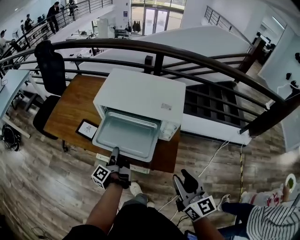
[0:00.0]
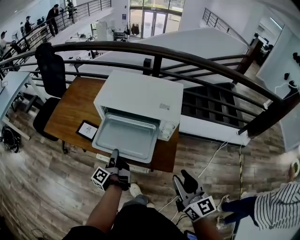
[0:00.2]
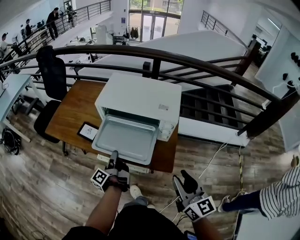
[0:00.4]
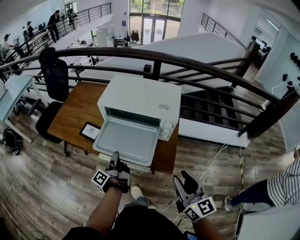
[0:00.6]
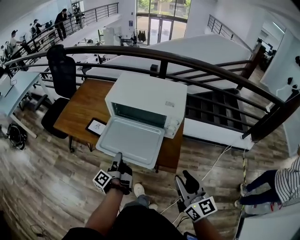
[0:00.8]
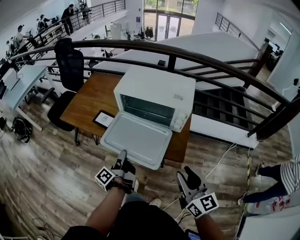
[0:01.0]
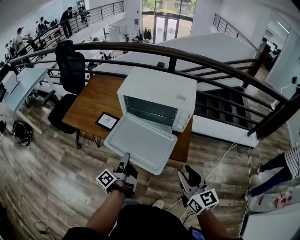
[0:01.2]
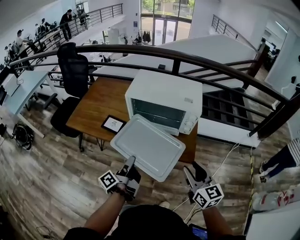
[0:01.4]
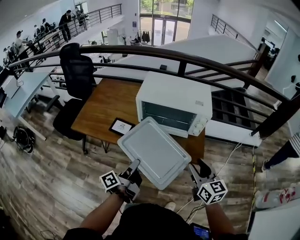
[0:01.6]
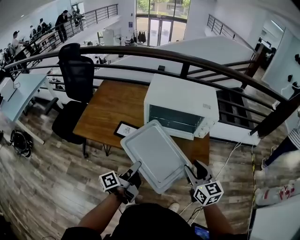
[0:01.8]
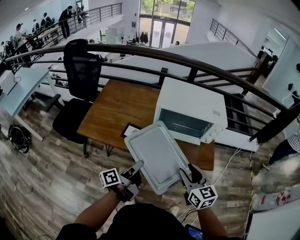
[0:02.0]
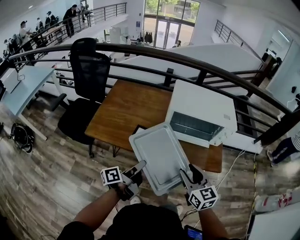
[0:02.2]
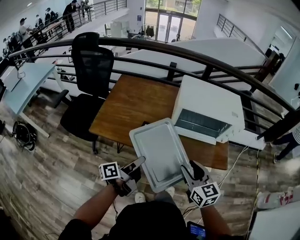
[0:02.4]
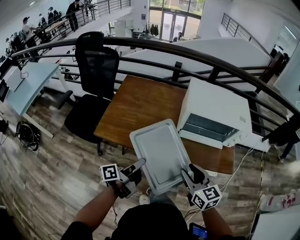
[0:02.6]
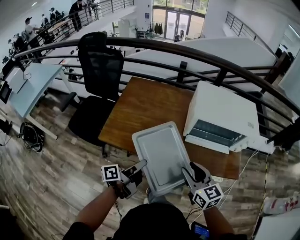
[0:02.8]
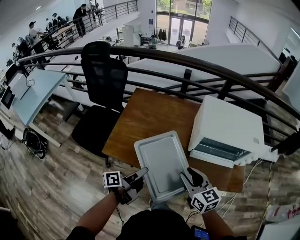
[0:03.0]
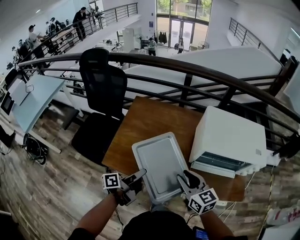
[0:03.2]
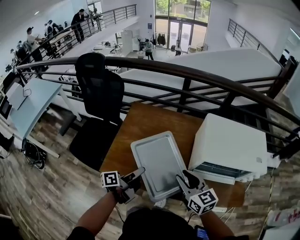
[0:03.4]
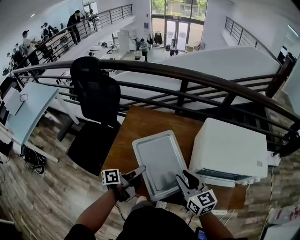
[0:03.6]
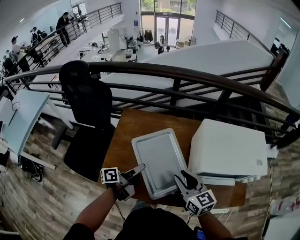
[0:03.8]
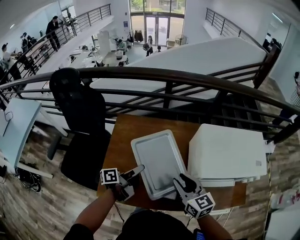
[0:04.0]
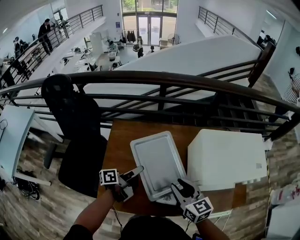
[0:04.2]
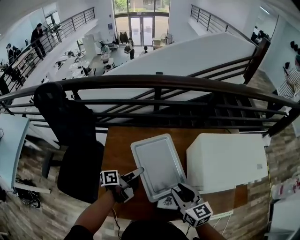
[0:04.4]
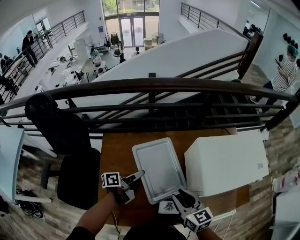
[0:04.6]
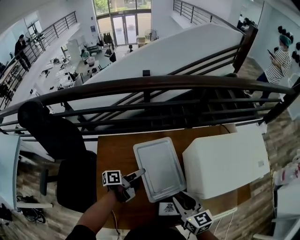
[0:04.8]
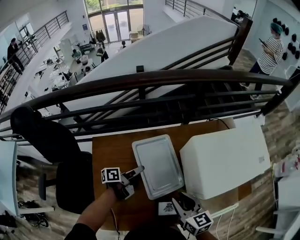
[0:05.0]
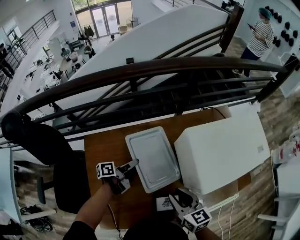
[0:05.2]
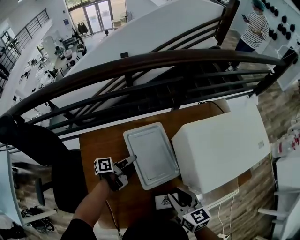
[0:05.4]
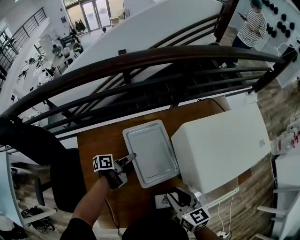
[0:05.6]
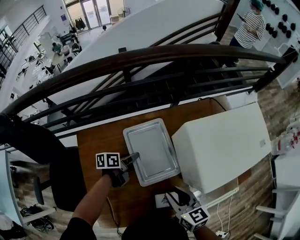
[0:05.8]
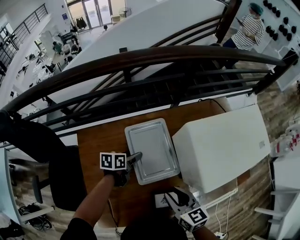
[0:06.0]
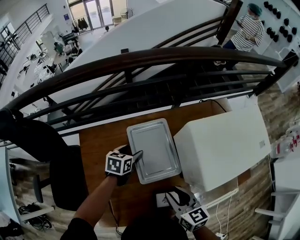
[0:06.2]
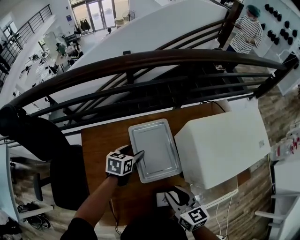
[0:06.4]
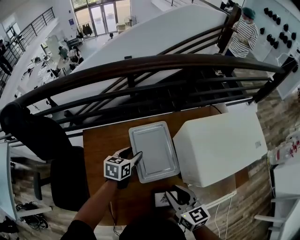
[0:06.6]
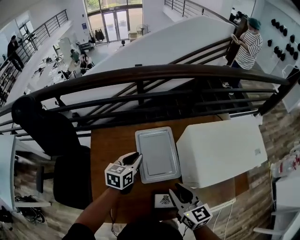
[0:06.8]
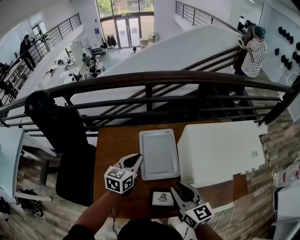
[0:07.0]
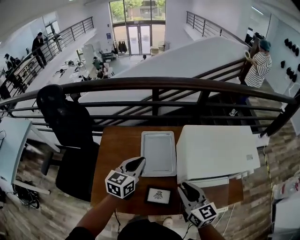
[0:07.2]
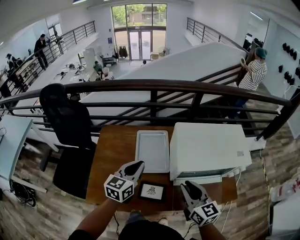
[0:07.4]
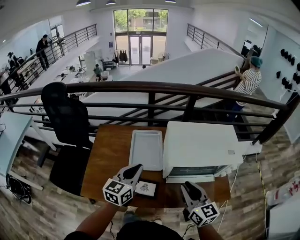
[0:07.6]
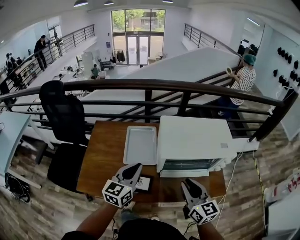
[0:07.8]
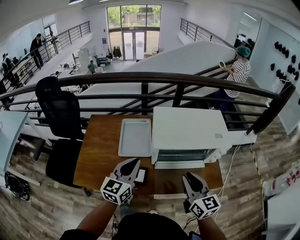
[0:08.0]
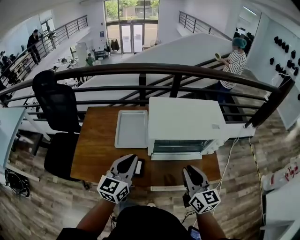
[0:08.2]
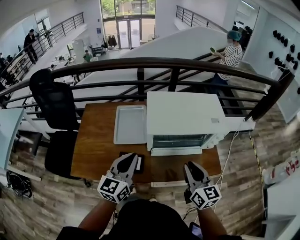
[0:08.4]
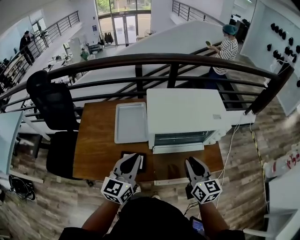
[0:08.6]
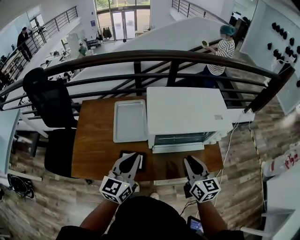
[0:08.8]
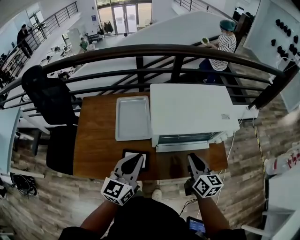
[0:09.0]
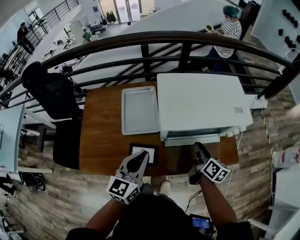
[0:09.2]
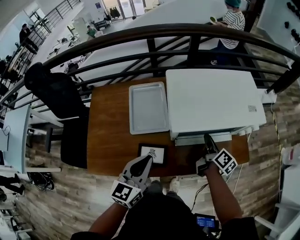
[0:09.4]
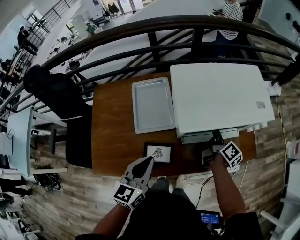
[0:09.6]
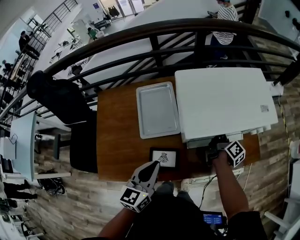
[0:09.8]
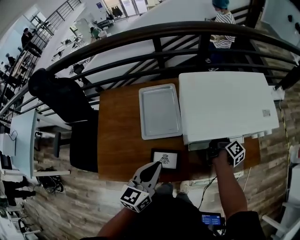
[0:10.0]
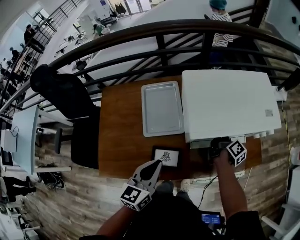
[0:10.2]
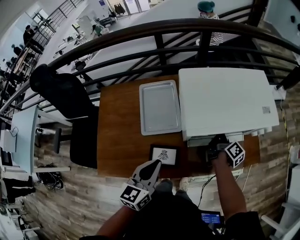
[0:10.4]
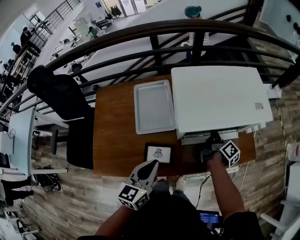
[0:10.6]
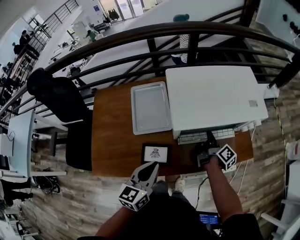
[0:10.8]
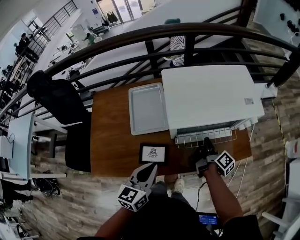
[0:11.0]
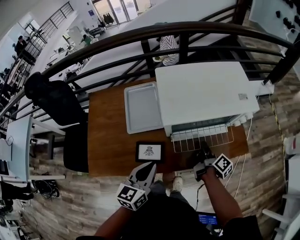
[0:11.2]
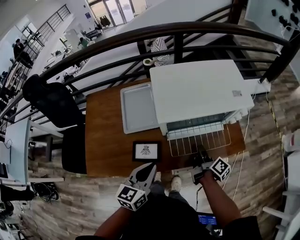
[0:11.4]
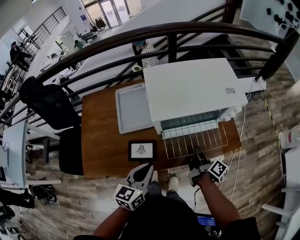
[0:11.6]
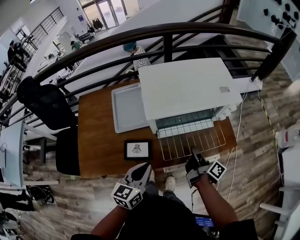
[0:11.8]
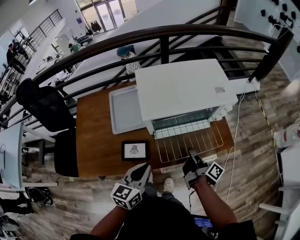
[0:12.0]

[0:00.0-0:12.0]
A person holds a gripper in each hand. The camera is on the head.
0:00.0 to 0:01.6: The left gripper is displaced backward, to the left and upward by roughly 15 cm, and changes its angle by roughly 30 degrees. The right gripper goes some 10 cm to the left.
0:01.6 to 0:03.0: The right gripper goes roughly 35 cm to the left. Meanwhile the left gripper travels to the left and forward by about 30 cm.
0:03.0 to 0:04.4: The left gripper heads forward, covering approximately 35 cm. The right gripper travels forward by approximately 20 cm.
0:04.4 to 0:06.0: The left gripper is displaced downward and forward by approximately 15 cm, angles its fingers downward, by about 40 degrees, and opens its fingers; the right gripper shifts some 5 cm downward.
0:06.0 to 0:07.6: The left gripper moves upward, backward and to the right, roughly 35 cm, rotates about 50 degrees, and closes up; the right gripper travels to the right, upward and backward by approximately 25 cm, and swivels some 20 degrees.
0:07.6 to 0:09.0: The left gripper goes roughly 10 cm to the right and backward, while the right gripper shifts some 10 cm to the right and downward, and swivels approximately 20 degrees.
0:09.0 to 0:10.4: The right gripper travels forward and downward by about 20 cm, twists some 50 degrees clockwise, seen from behind, and opens and closes again, while the left gripper shifts some 10 cm downward.
0:10.4 to 0:12.0: The right gripper is displaced backward by roughly 15 cm. Meanwhile the left gripper moves to the right and backward, approximately 10 cm.

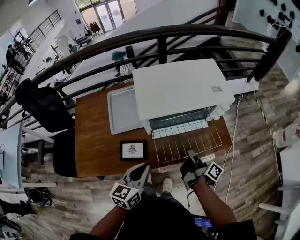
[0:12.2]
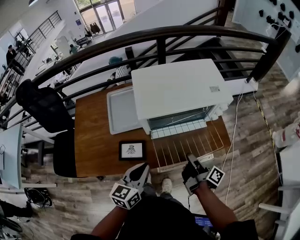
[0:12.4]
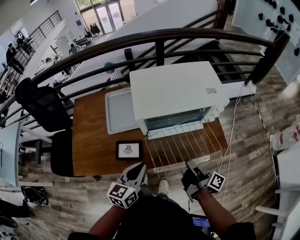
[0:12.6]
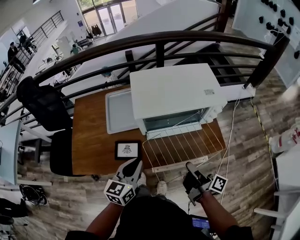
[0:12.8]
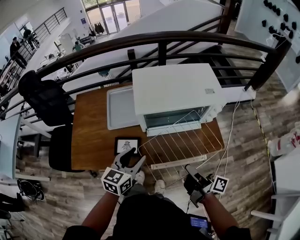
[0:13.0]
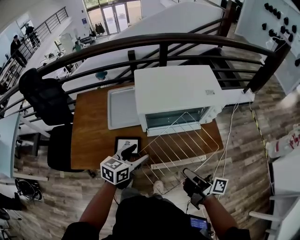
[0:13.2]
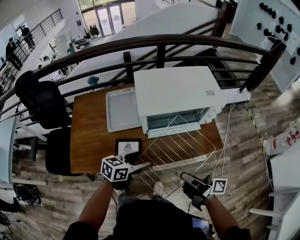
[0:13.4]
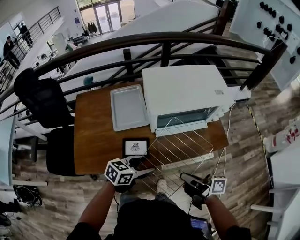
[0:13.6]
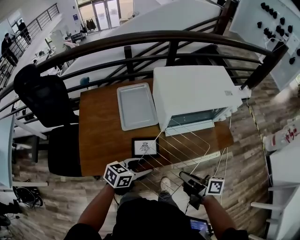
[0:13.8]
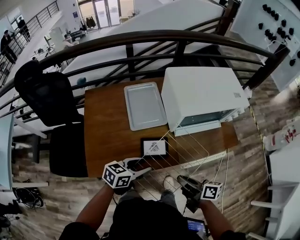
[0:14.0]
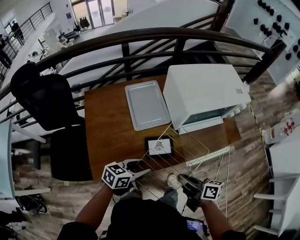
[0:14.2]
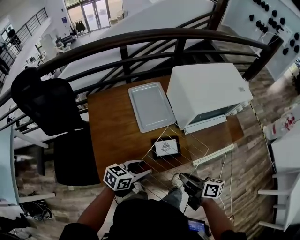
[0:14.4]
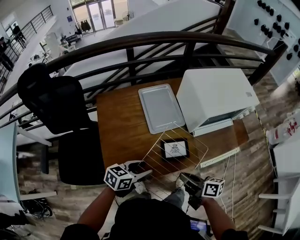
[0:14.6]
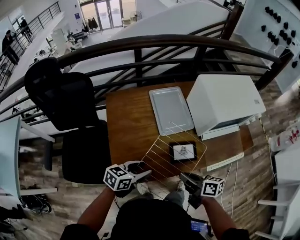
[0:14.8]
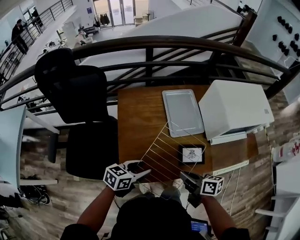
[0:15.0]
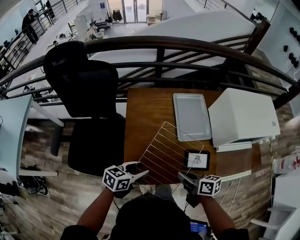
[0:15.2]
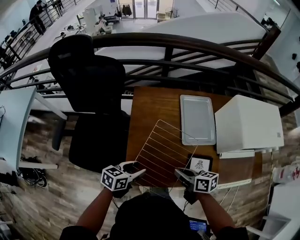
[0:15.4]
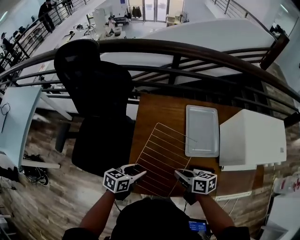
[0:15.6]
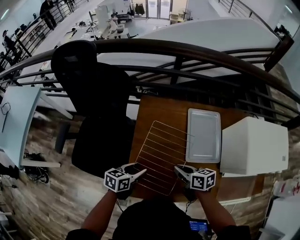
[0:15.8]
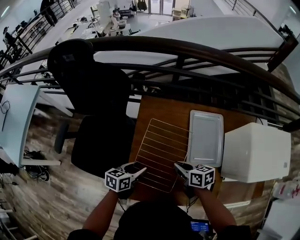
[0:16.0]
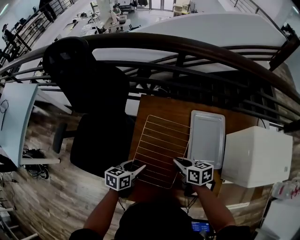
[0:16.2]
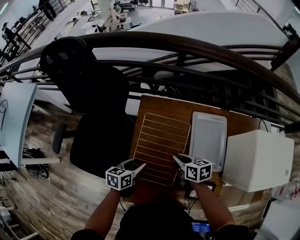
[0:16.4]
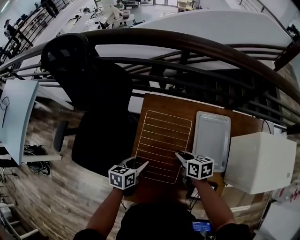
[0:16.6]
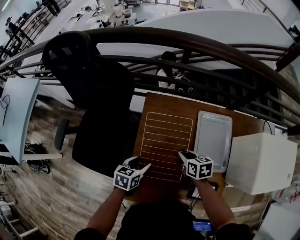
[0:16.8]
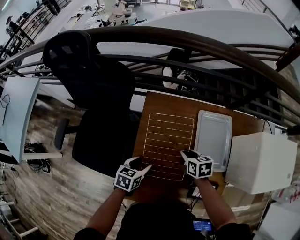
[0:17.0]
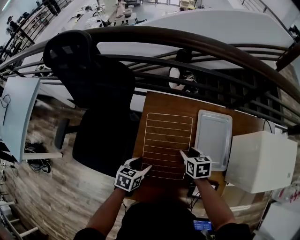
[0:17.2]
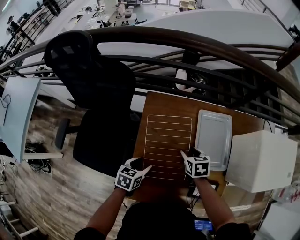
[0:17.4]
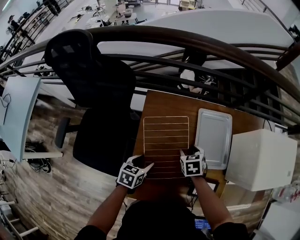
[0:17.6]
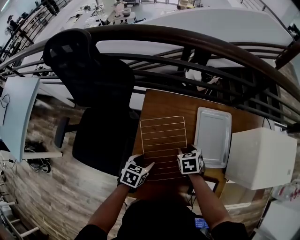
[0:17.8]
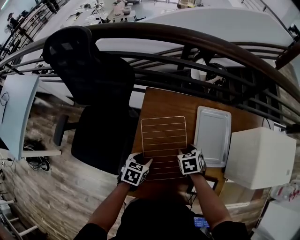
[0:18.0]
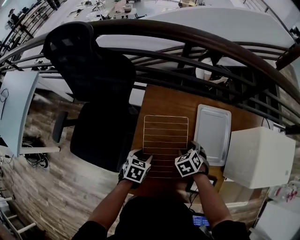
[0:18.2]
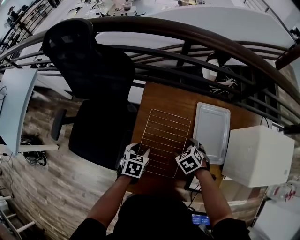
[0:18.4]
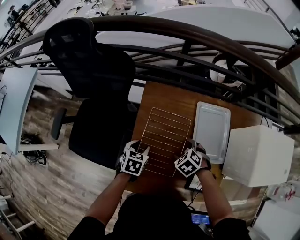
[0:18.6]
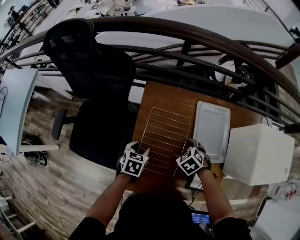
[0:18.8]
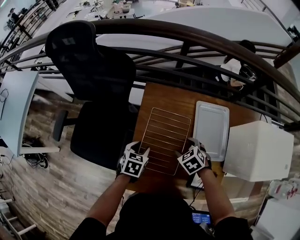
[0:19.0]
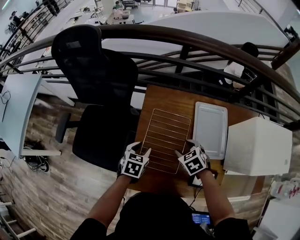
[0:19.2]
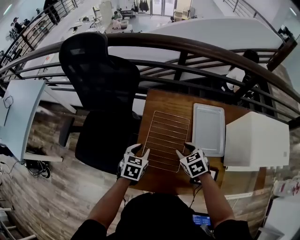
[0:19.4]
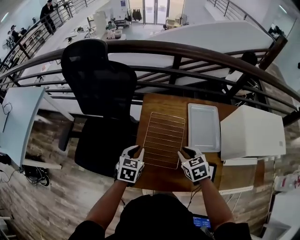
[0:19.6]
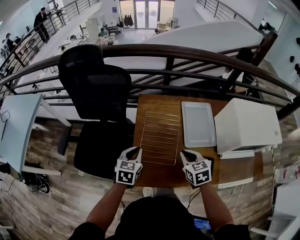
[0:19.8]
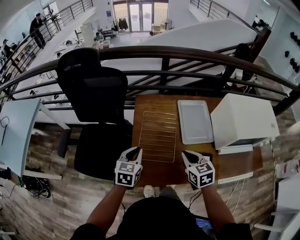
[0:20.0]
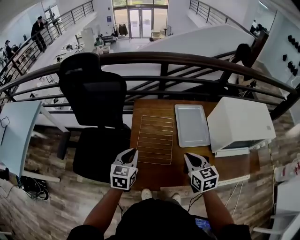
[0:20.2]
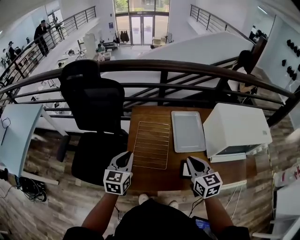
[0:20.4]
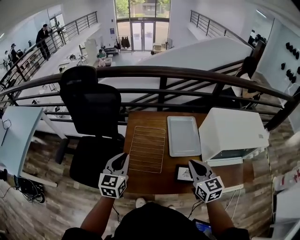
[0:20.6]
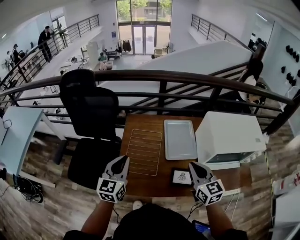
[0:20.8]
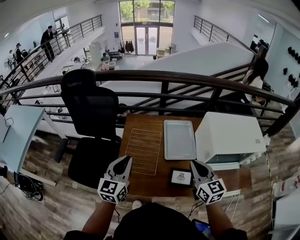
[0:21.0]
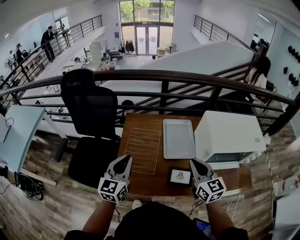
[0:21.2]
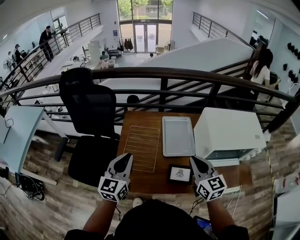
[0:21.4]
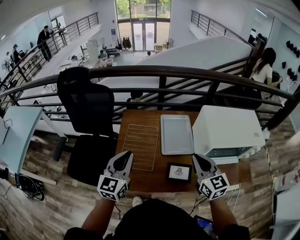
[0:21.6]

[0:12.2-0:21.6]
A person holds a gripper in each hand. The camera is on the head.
0:12.2 to 0:13.8: The right gripper is displaced to the left and backward by roughly 20 cm, and turns by roughly 40 degrees; the left gripper heads to the left, covering roughly 10 cm, changes its angle by approximately 30 degrees, and opens its fingers.
0:13.8 to 0:15.4: Both grippers move to the left, roughly 30 cm. The right gripper rotates approximately 30 degrees, while the left gripper changes its angle by approximately 20 degrees.
0:15.4 to 0:17.0: The left gripper heads forward and downward, covering approximately 15 cm, and turns by about 20 degrees, while the right gripper travels forward and downward by some 25 cm, and changes its angle by about 30 degrees.
0:17.0 to 0:18.4: The right gripper rotates approximately 40 degrees, and opens its fingers.
0:18.4 to 0:20.0: The grippers both shift upward by approximately 15 cm. The right gripper tilts its fingers approximately 40 degrees upward, and closes its fingers, while the left gripper turns by some 30 degrees, and closes its fingers.
0:20.0 to 0:21.6: The left gripper shifts some 15 cm upward and to the right, and rotates approximately 30 degrees. The right gripper moves to the right and upward, about 20 cm, and swivels roughly 30 degrees.

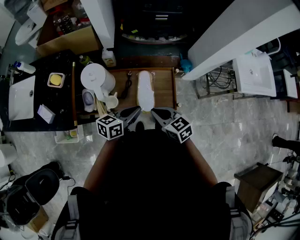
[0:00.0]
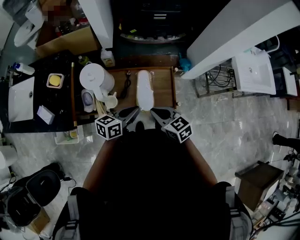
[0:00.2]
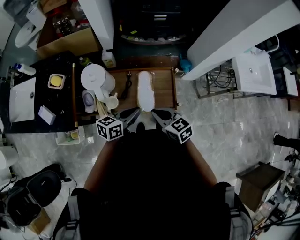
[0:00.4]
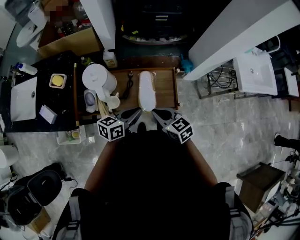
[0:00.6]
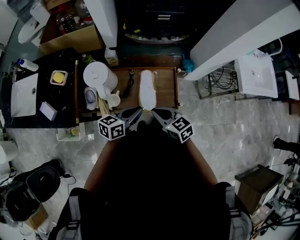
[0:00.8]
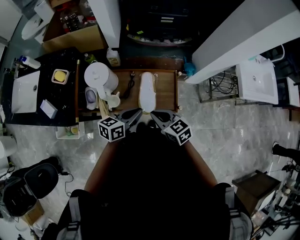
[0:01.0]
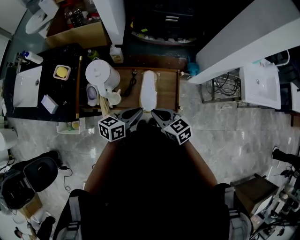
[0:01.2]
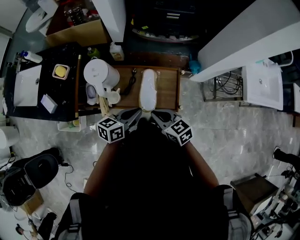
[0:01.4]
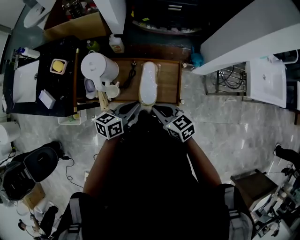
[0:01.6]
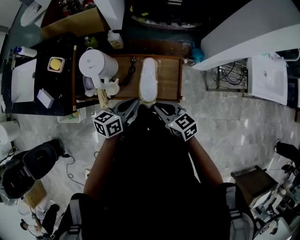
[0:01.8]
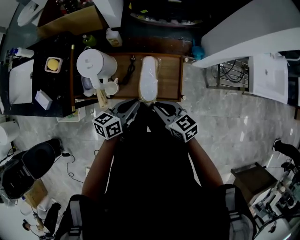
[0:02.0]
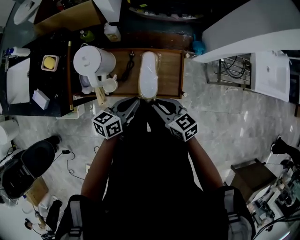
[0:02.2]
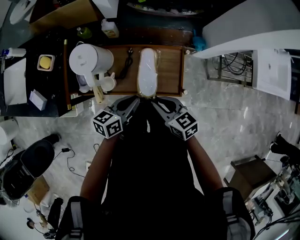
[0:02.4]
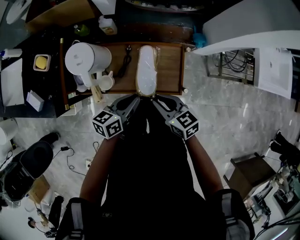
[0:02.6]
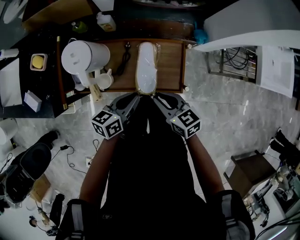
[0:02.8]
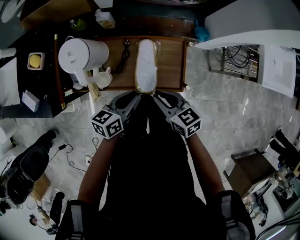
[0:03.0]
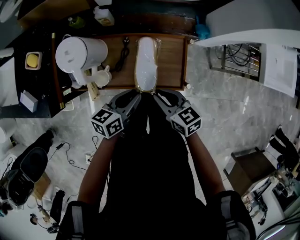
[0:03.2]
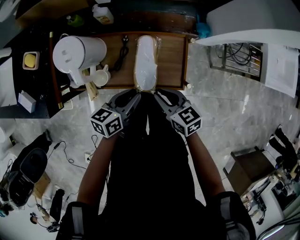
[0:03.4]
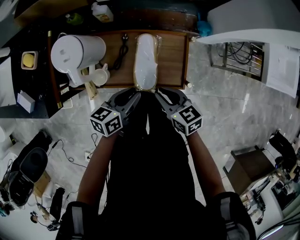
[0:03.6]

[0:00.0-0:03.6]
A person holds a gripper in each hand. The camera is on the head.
0:00.0 to 0:01.8: There are only small adjustments of the grippers.
0:01.8 to 0:03.6: Both grippers move downward, approximately 10 cm.
